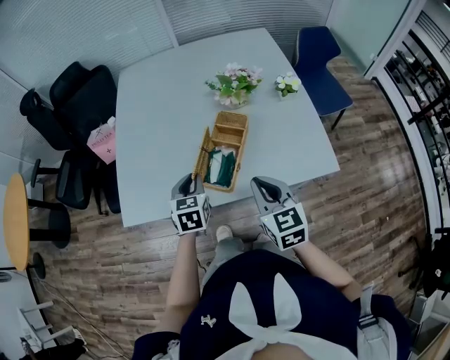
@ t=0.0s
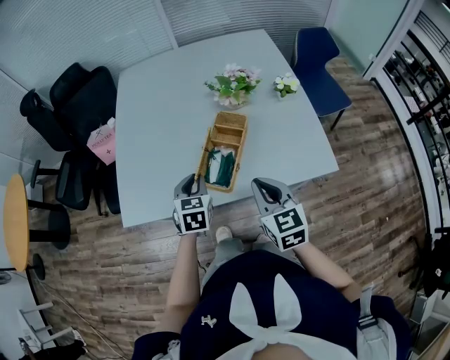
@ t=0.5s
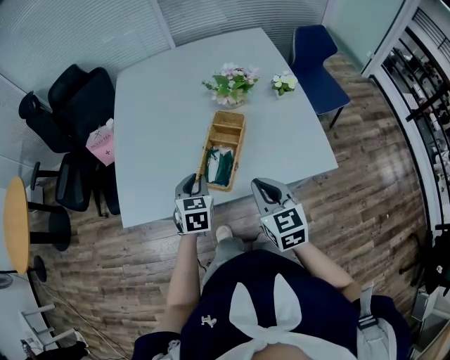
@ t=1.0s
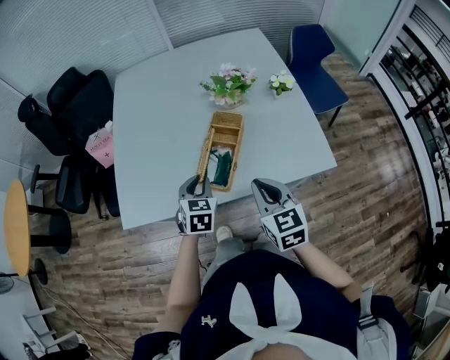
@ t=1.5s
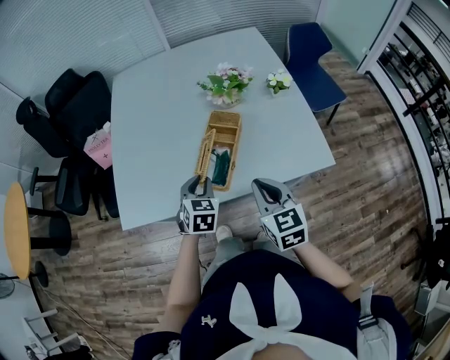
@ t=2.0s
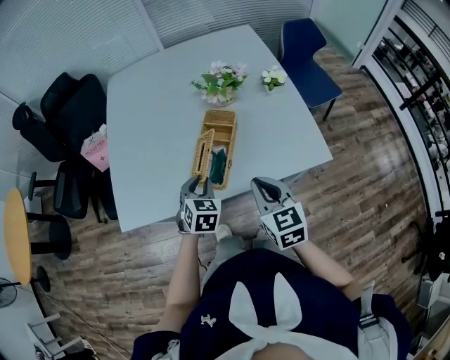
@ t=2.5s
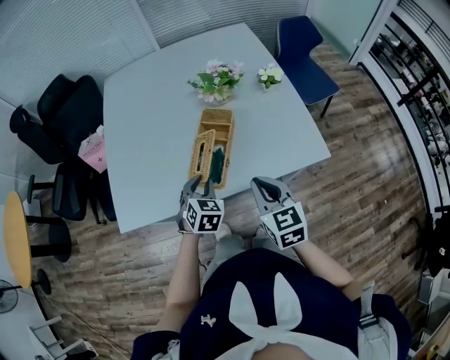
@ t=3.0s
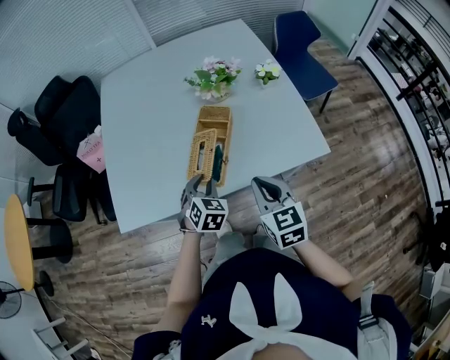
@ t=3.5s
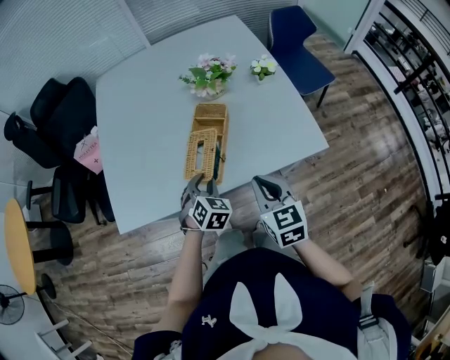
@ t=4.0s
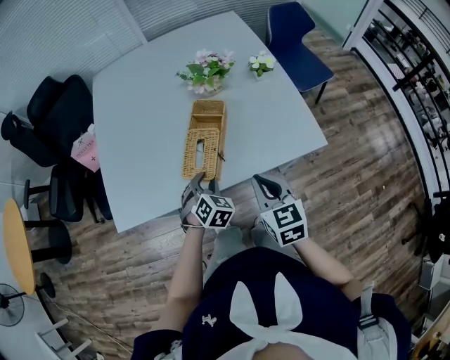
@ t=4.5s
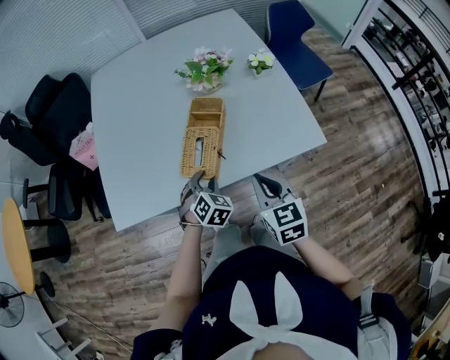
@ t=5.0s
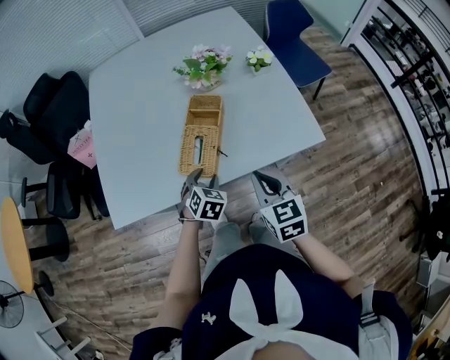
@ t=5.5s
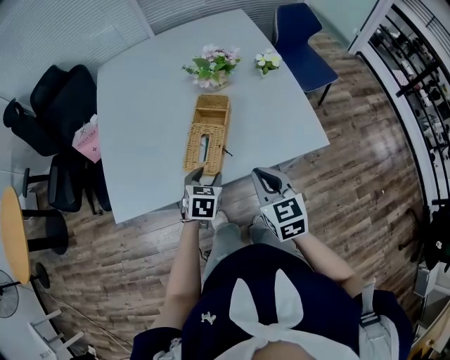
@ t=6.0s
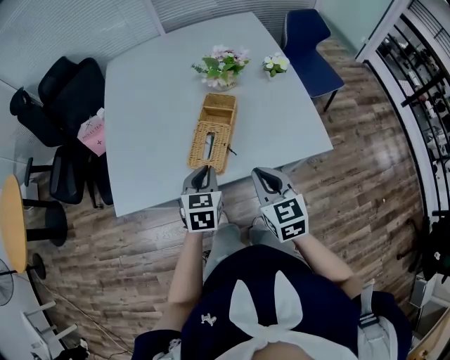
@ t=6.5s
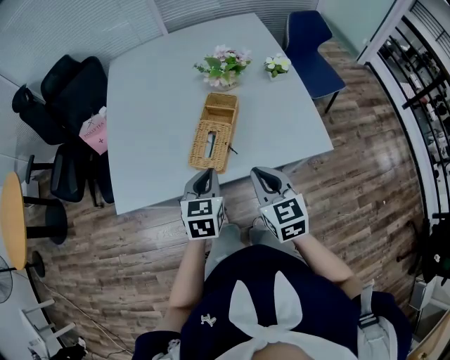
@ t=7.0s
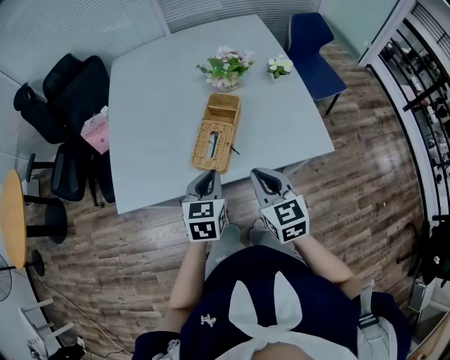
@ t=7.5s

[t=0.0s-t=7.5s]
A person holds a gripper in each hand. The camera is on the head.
t=0.0s to t=2.0s: There are only small adjustments of the grippers.
t=2.0s to t=4.0s: The left gripper changes place by roughly 5 cm.
t=4.0s to t=5.5s: There are only small adjustments of the grippers.
t=5.5s to t=7.5s: The left gripper goes some 15 cm upward, rotates roughly 30 degrees, and closes its fingers.

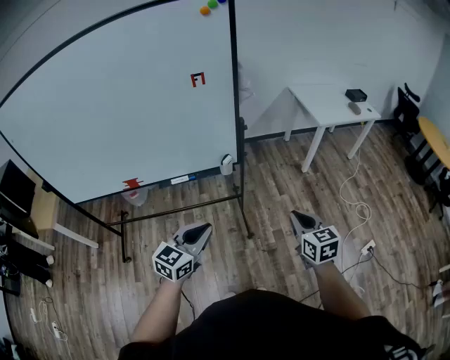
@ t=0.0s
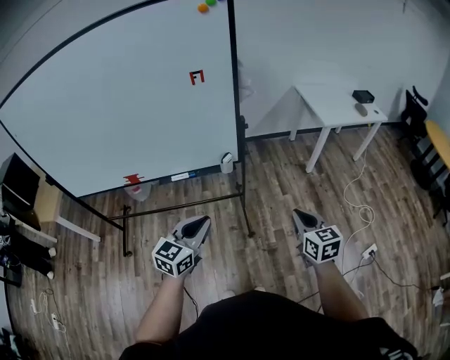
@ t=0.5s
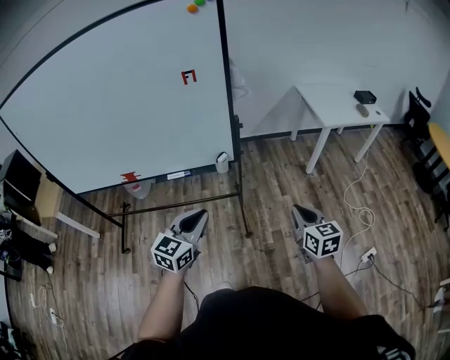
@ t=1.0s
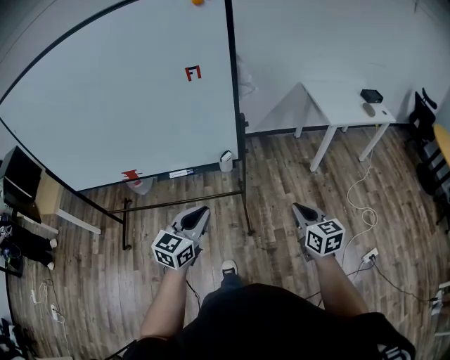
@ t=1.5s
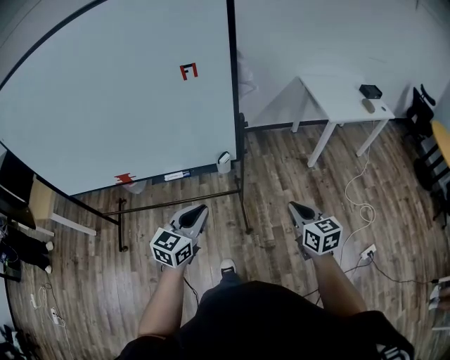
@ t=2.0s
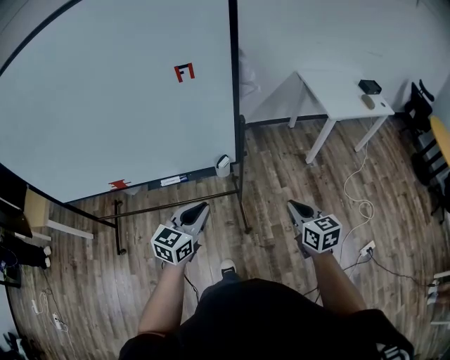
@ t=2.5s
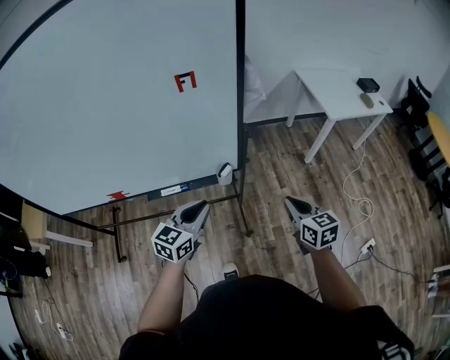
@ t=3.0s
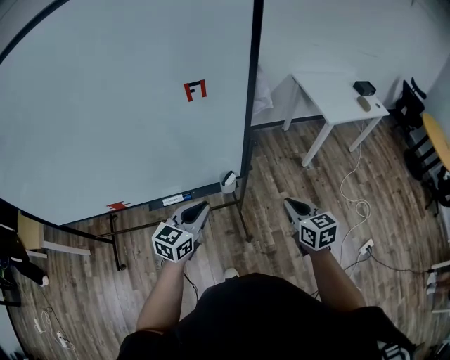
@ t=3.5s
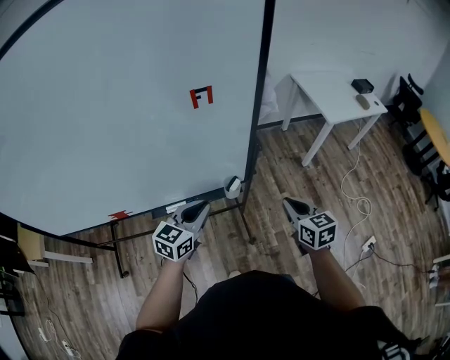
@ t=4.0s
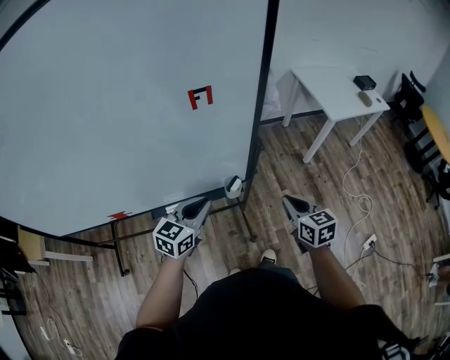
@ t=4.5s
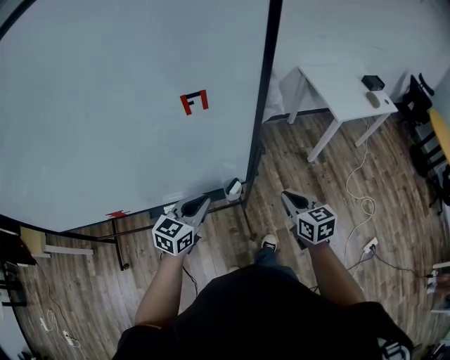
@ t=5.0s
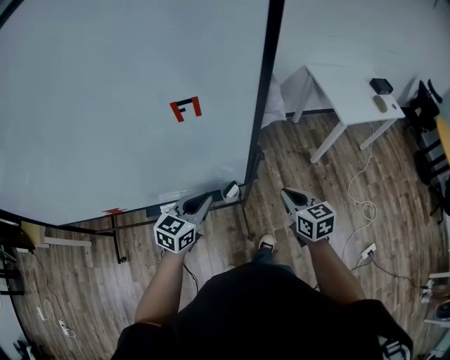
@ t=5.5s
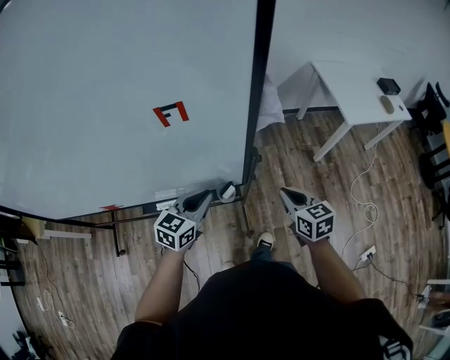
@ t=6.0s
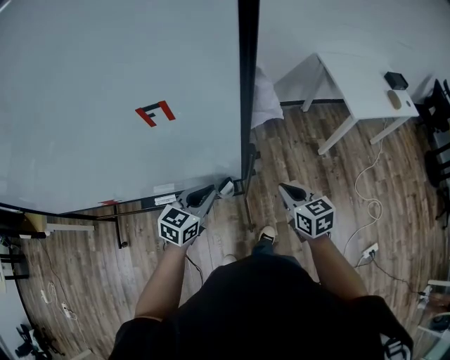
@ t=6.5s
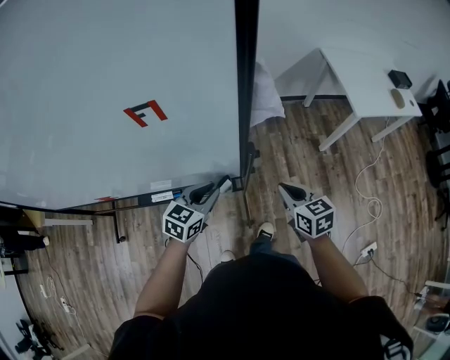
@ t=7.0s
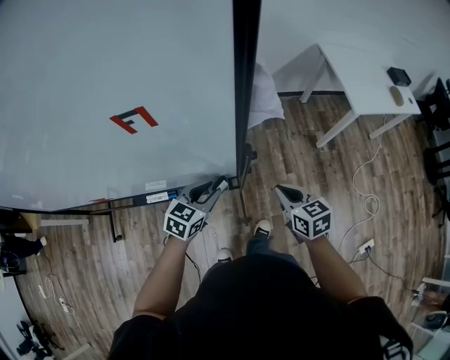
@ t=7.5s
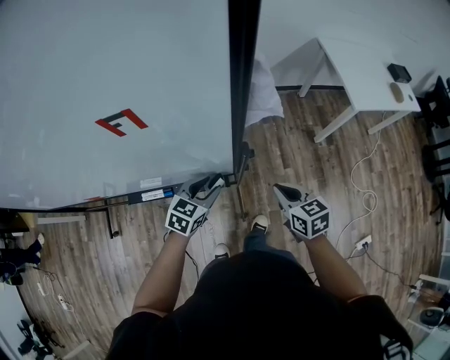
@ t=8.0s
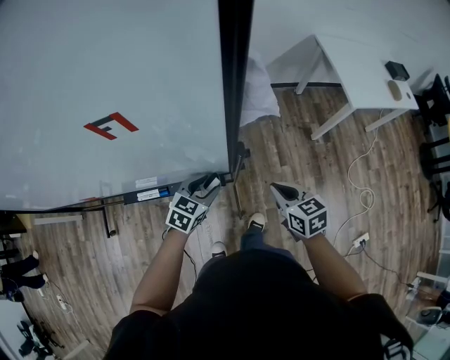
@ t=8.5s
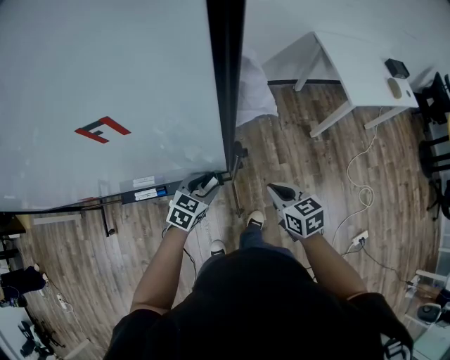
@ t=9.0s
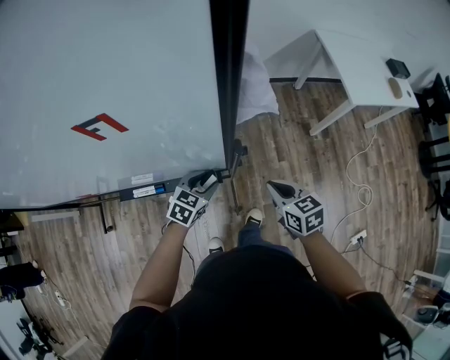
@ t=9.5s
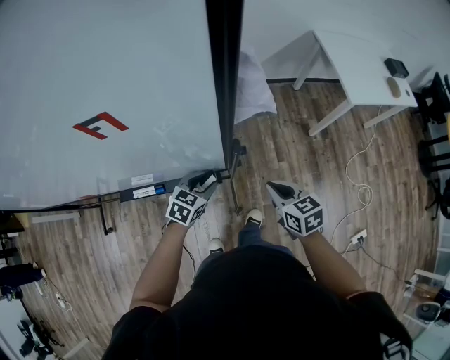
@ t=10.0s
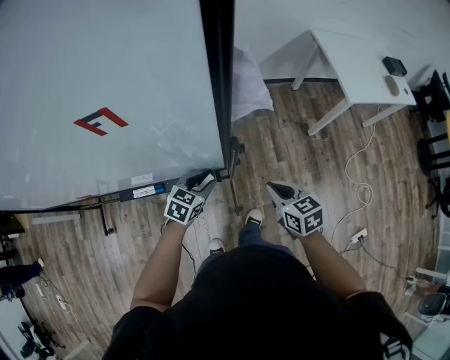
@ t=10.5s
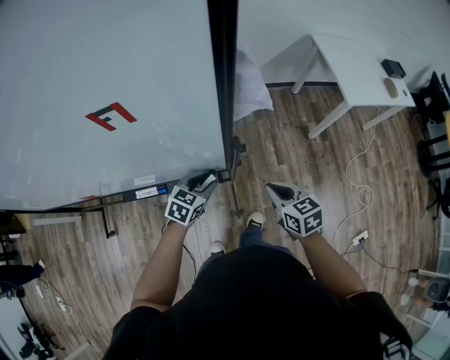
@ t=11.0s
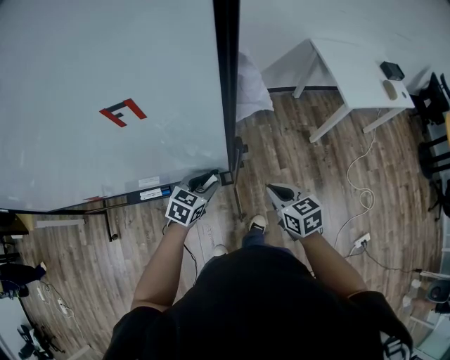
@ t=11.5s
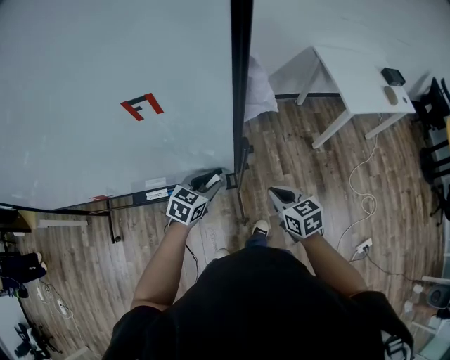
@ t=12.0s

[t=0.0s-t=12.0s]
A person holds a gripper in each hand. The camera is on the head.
t=0.0s to t=2.0s: The two grippers go about 10 cm forward.
t=2.0s to t=4.0s: Both grippers move forward and to the left, about 20 cm.
t=4.0s to t=6.0s: Both grippers move forward, approximately 10 cm.
t=6.0s to t=8.0s: The left gripper shifts some 10 cm downward, and opens up. Meanwhile the right gripper is displaced downward by about 5 cm.
t=8.0s to t=10.0s: The left gripper moves downward, approximately 5 cm.
t=10.0s to t=12.0s: The left gripper shifts some 5 cm upward.

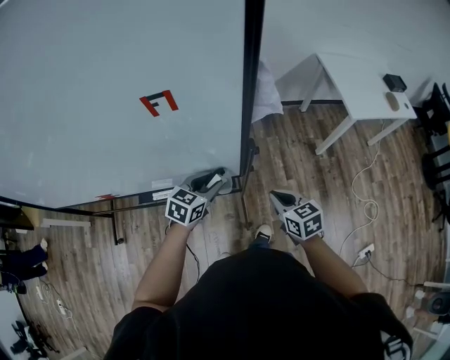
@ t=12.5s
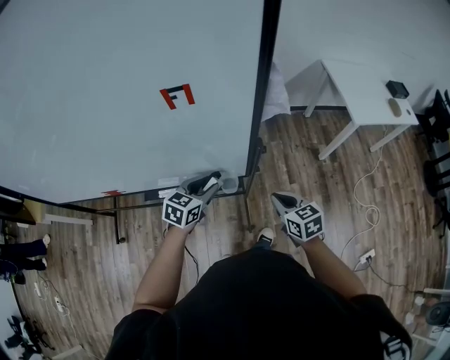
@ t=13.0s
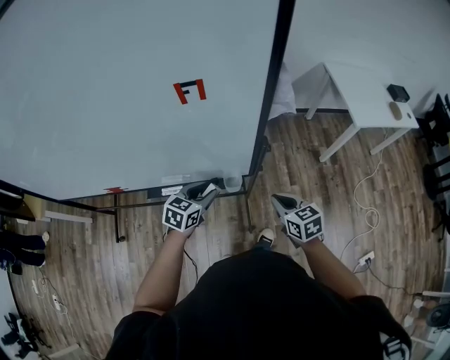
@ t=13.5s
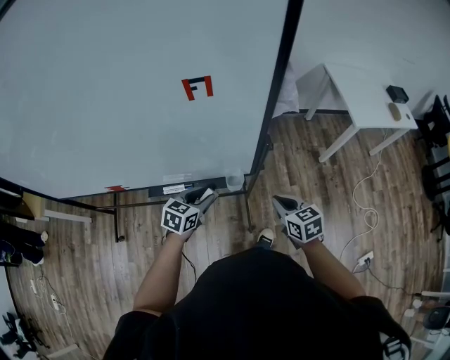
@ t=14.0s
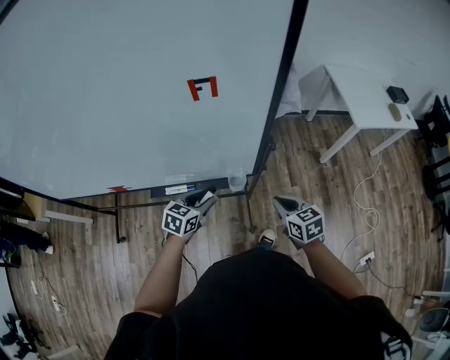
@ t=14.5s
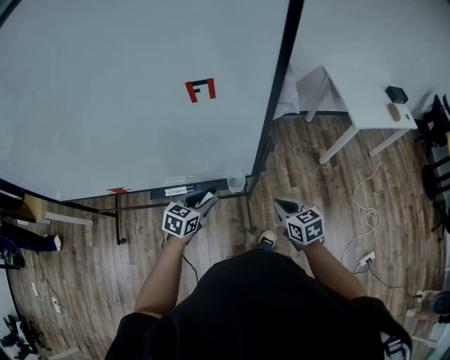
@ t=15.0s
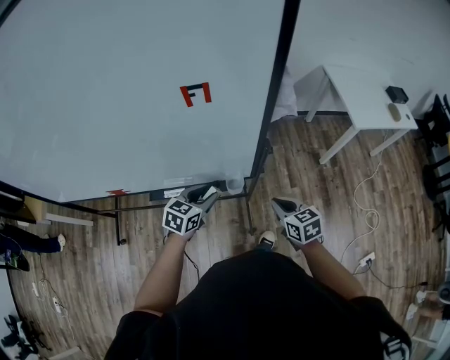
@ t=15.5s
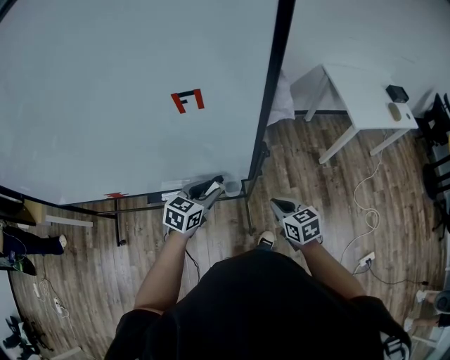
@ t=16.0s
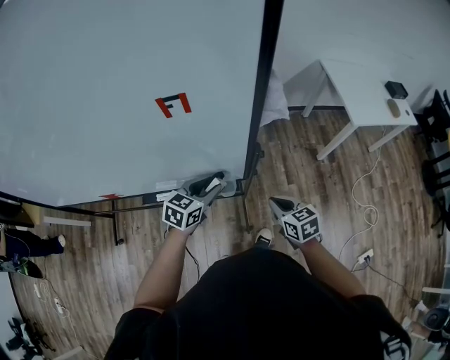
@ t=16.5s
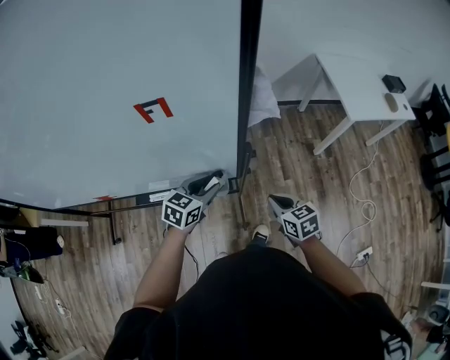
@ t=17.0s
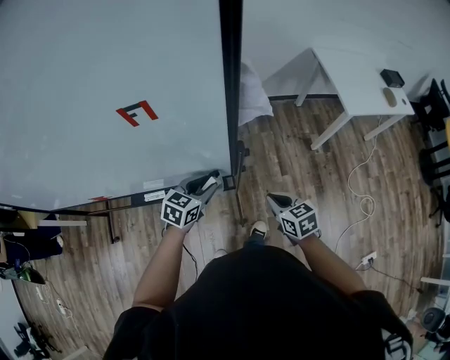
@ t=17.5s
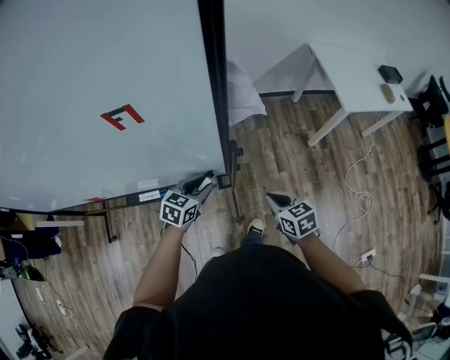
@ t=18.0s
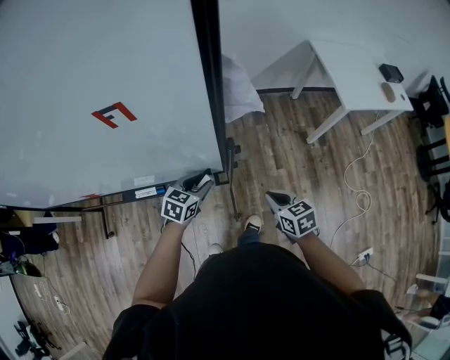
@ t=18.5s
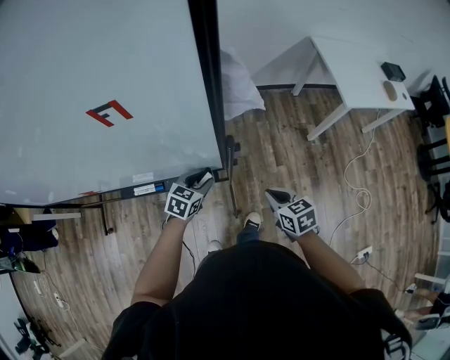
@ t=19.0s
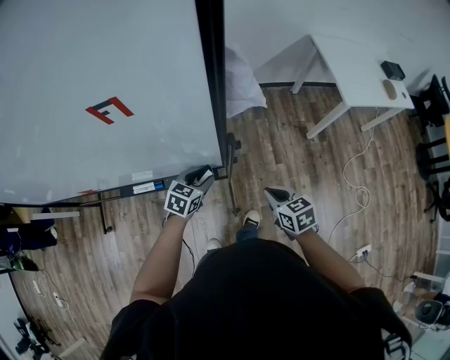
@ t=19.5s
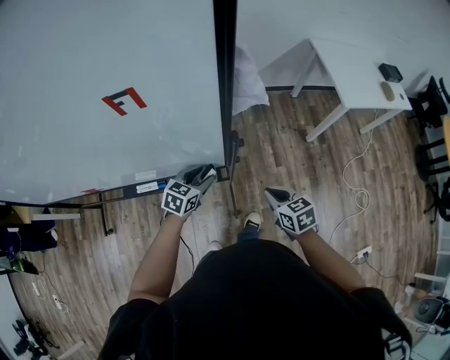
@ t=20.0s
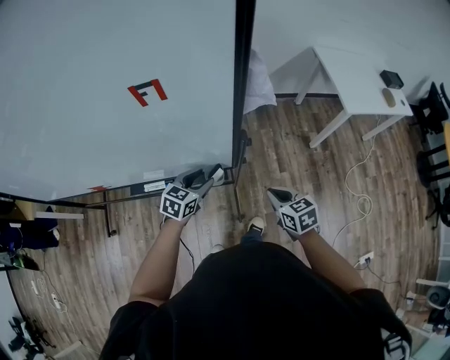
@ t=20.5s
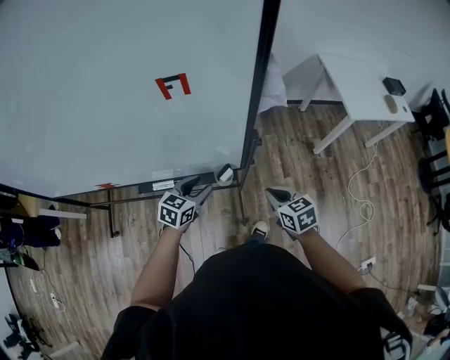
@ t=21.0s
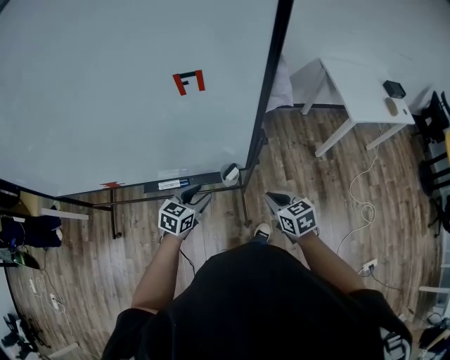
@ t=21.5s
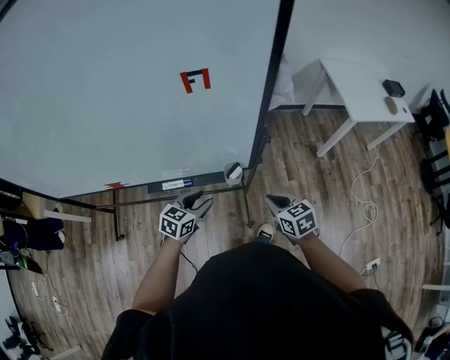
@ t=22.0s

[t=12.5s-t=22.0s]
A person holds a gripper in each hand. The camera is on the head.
t=12.5s to t=14.5s: The left gripper moves to the left and backward, roughly 10 cm; the right gripper shifts by some 5 cm.
t=14.5s to t=16.5s: The left gripper heads to the right, forward and upward, covering some 10 cm.
t=16.5s to t=18.0s: The left gripper moves downward, approximately 5 cm, while the right gripper goes roughly 5 cm to the right.
t=18.0s to t=20.0s: There are only small adjustments of the grippers.
t=20.0s to t=22.0s: The left gripper moves backward and to the left, some 15 cm. Meanwhile the right gripper travels to the left by approximately 10 cm.
